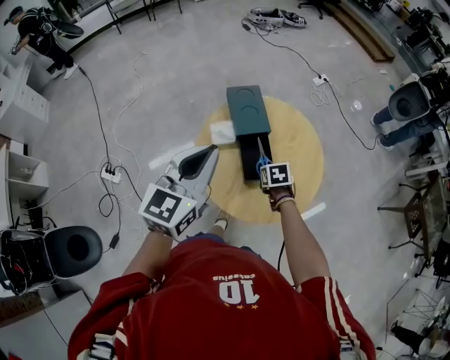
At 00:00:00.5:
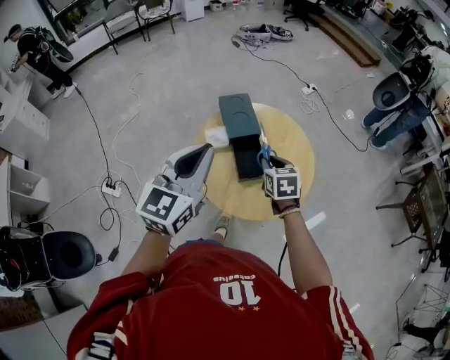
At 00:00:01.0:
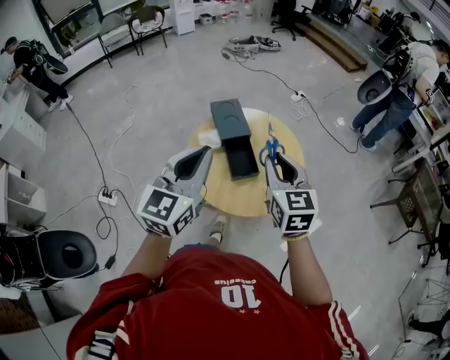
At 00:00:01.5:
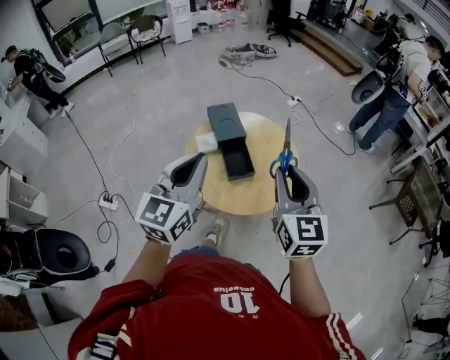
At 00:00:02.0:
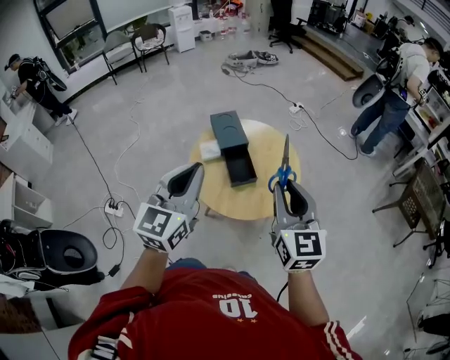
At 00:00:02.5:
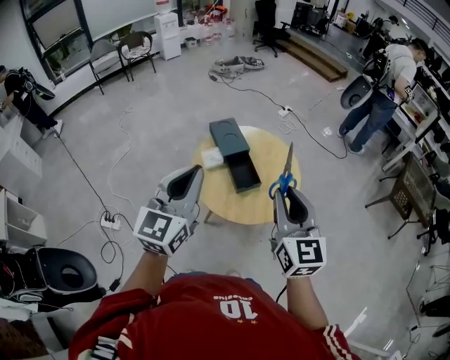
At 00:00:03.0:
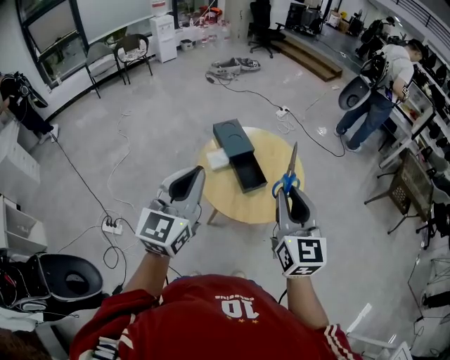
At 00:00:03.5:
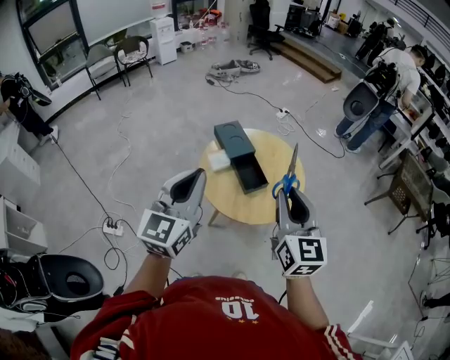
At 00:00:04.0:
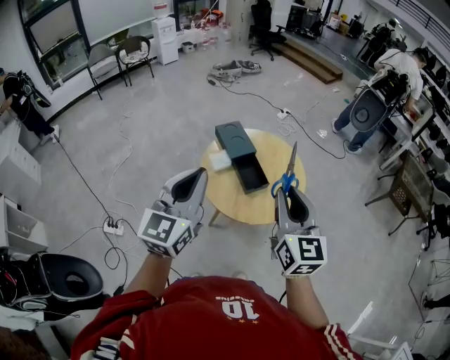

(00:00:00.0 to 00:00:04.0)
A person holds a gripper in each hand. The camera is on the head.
00:00:00.0 - 00:00:02.0: The left gripper moves backward and upward, some 15 cm. The right gripper heads upward and backward, covering about 40 cm, and tips its fingers upward by roughly 60 degrees.
00:00:02.0 - 00:00:04.0: The grippers both shift to the left by some 10 cm.

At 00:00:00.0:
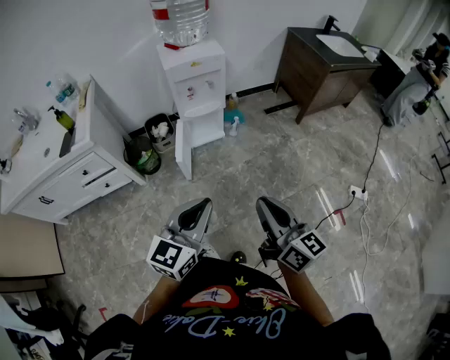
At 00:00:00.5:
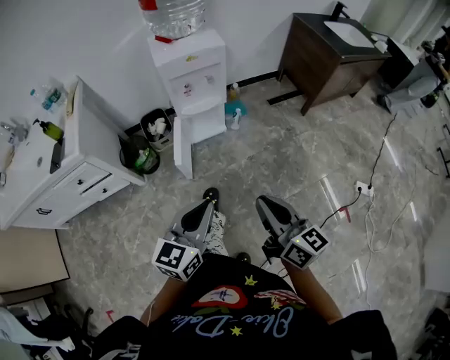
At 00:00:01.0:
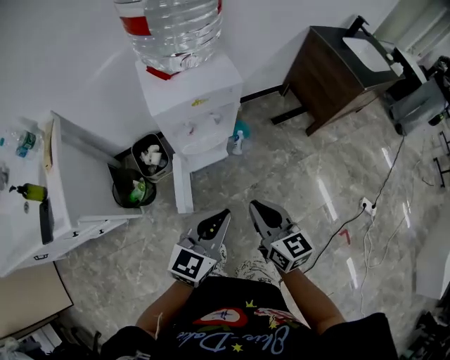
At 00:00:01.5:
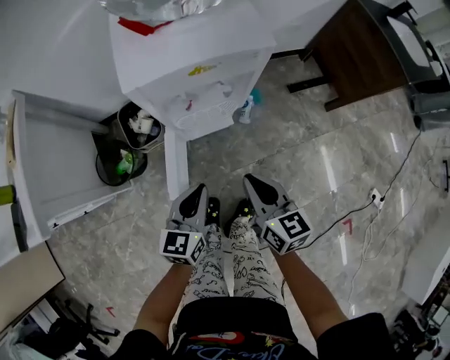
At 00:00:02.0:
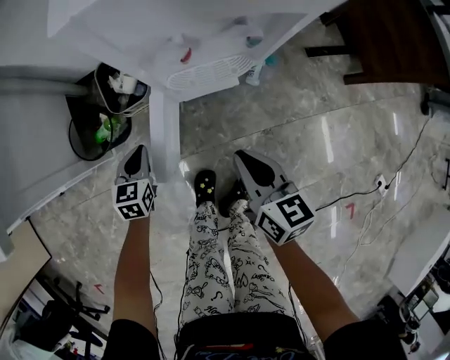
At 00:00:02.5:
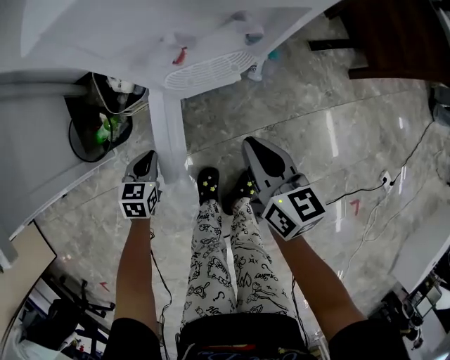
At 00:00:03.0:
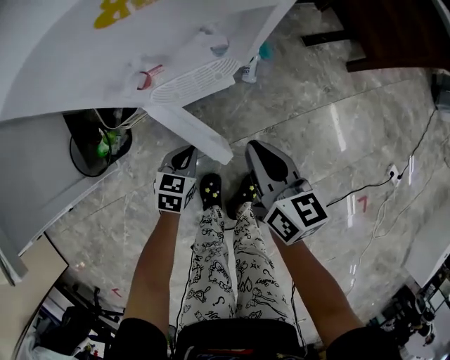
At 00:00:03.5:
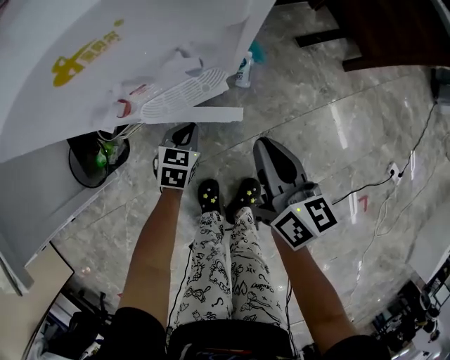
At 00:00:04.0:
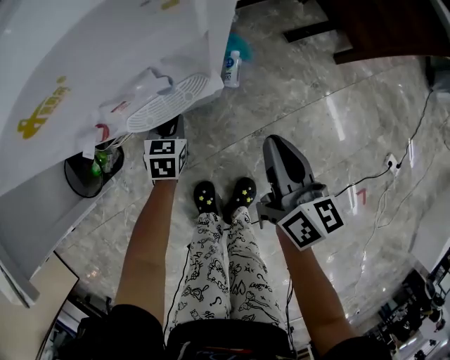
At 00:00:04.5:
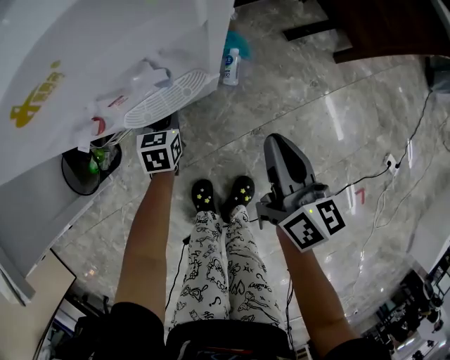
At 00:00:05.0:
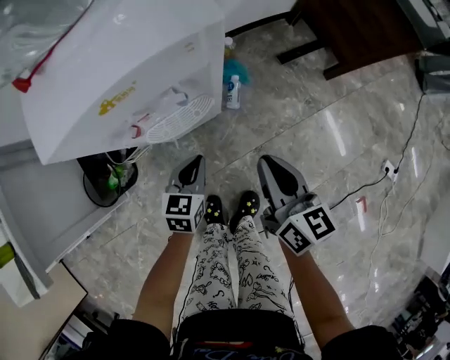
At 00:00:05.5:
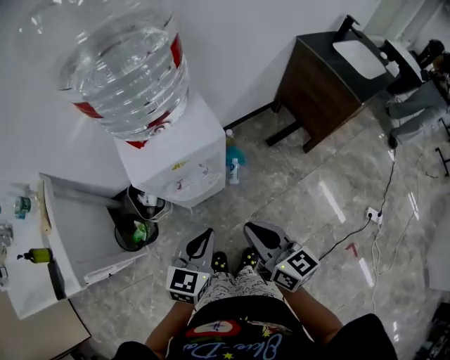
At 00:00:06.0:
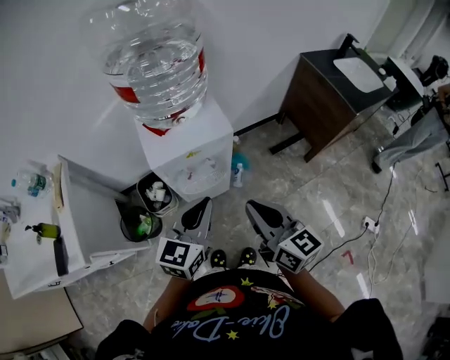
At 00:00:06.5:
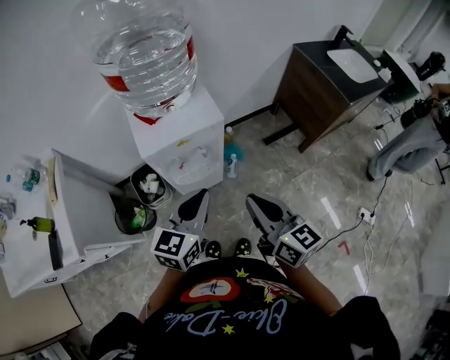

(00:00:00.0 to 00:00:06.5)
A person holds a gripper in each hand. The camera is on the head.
00:00:00.0 - 00:00:02.0: The two grippers travel together, forward, some 50 cm. The two grippers go approximately 50 cm downward. The left gripper tips its fingers downward by about 30 degrees. The right gripper turns by some 30 degrees.
00:00:02.0 - 00:00:04.5: The grippers both shift to the right and forward by some 20 cm. The right gripper swivels some 30 degrees.
00:00:04.5 - 00:00:06.5: The left gripper travels upward by roughly 60 cm, and points its fingers approximately 30 degrees further upward; the right gripper heads upward and backward, covering approximately 40 cm, and changes its angle by some 30 degrees.

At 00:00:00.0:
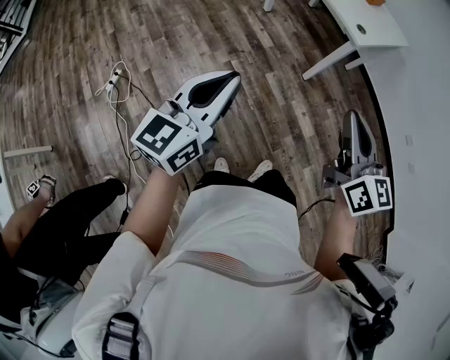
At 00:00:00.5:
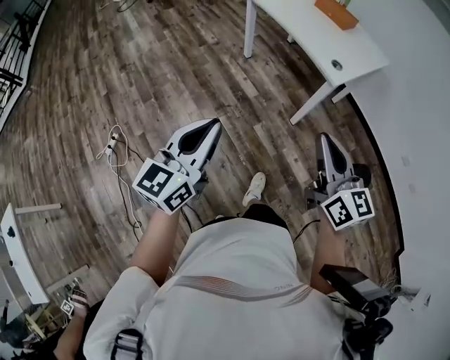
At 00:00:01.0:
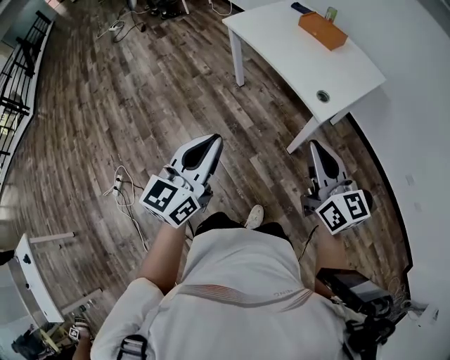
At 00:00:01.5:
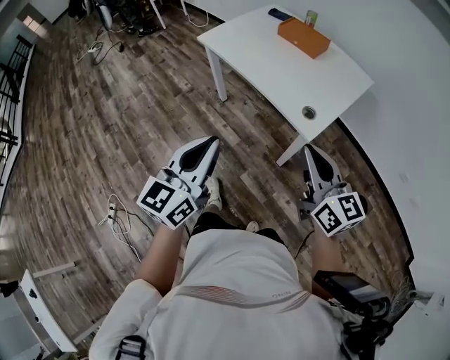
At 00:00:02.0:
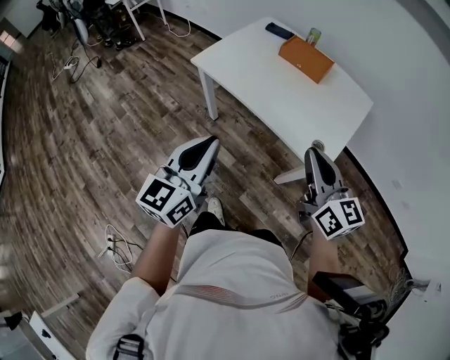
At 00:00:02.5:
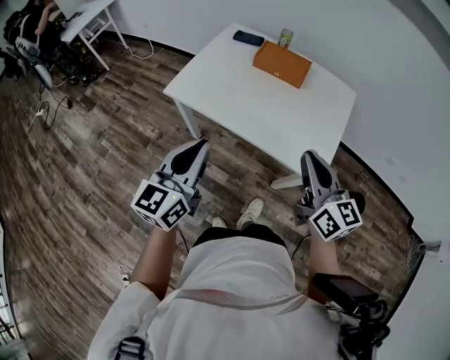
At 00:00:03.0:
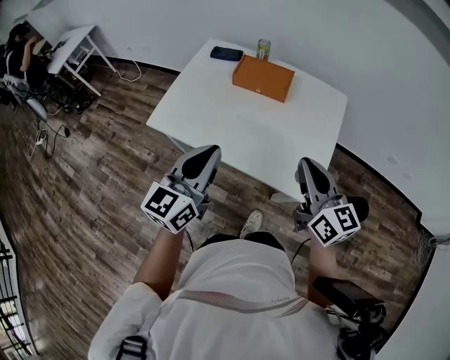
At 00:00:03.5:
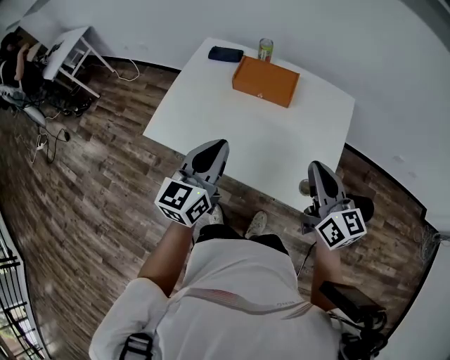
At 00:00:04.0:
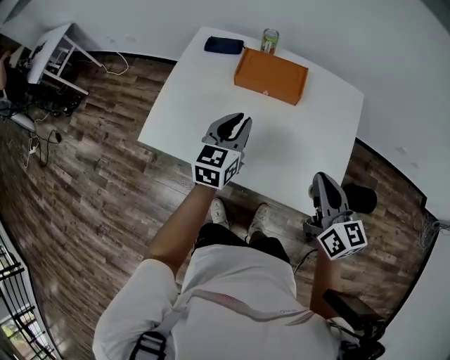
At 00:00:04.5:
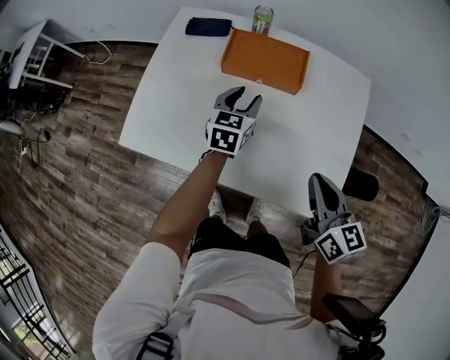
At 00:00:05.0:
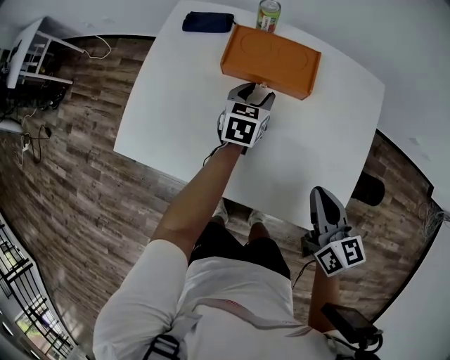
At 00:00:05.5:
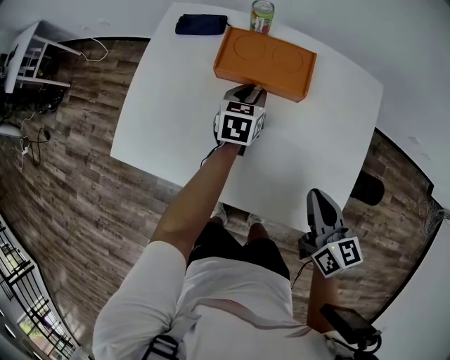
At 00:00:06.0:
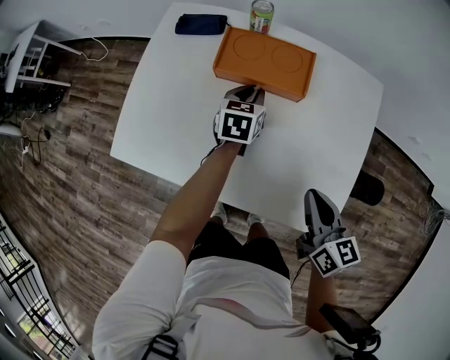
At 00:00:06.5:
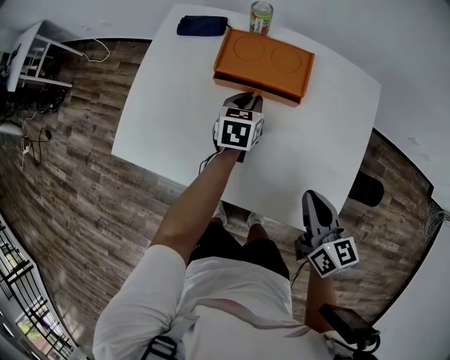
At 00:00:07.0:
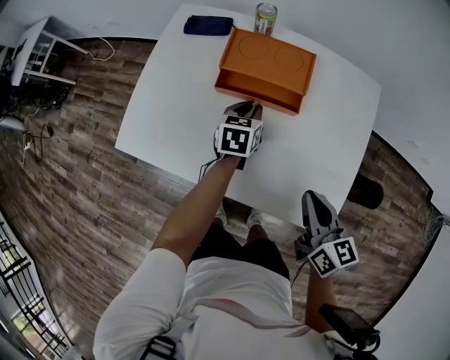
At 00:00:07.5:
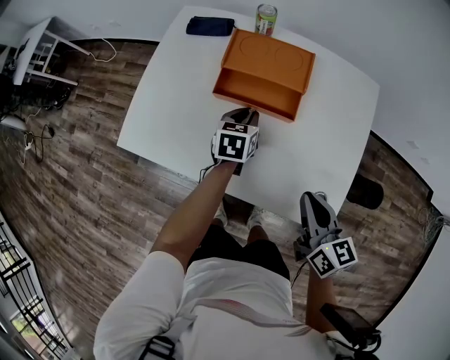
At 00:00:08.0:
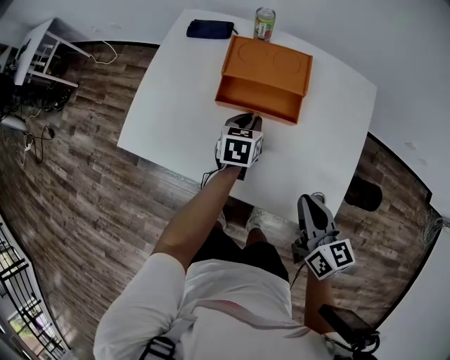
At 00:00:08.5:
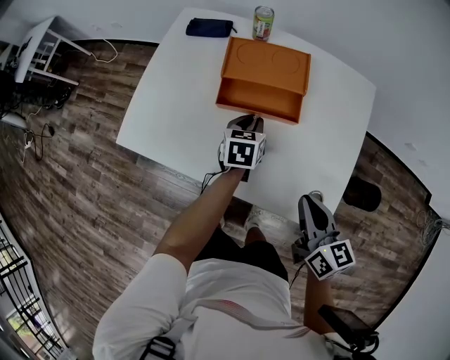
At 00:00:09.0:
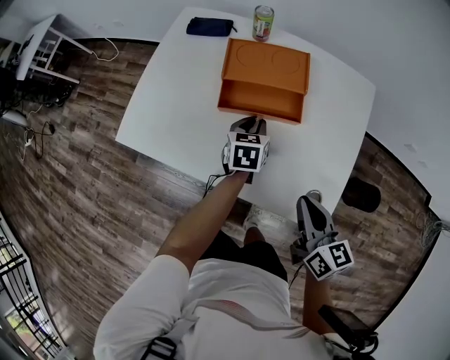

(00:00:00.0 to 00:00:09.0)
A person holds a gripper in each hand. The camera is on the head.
00:00:00.0 - 00:00:02.0: The two grippers travel together, forward, roughly 60 cm.
00:00:02.0 - 00:00:04.5: The right gripper travels forward and downward by roughly 30 cm, and changes its angle by some 30 degrees; the left gripper moves forward and downward, approximately 60 cm, turns by some 30 degrees, and opens.
00:00:04.5 - 00:00:07.0: The left gripper is displaced downward by roughly 5 cm, and closes up.
00:00:07.0 - 00:00:09.0: The left gripper heads backward, covering some 5 cm.

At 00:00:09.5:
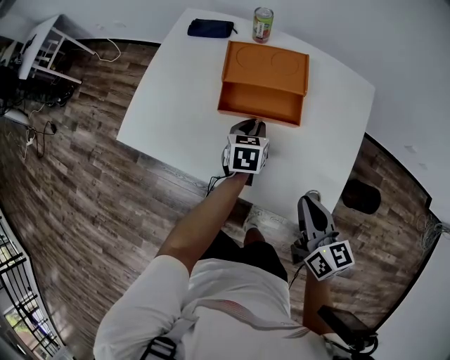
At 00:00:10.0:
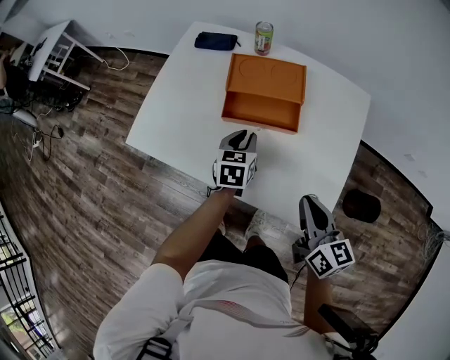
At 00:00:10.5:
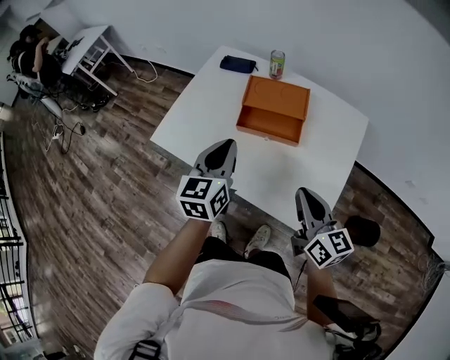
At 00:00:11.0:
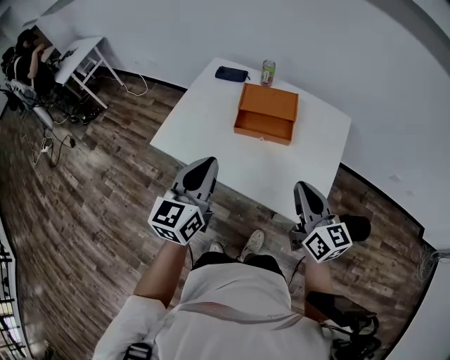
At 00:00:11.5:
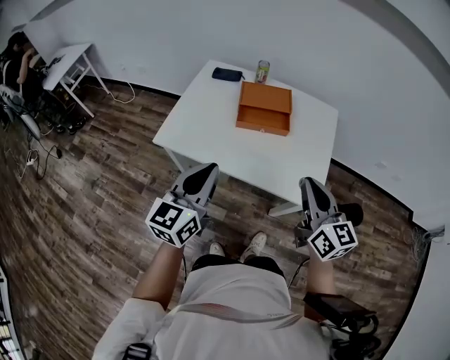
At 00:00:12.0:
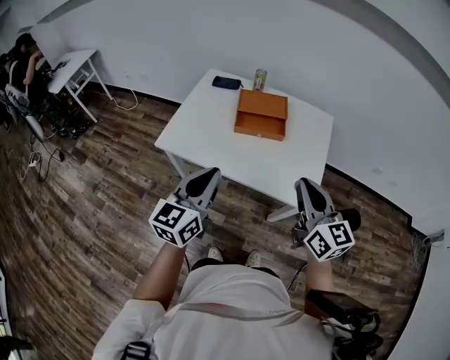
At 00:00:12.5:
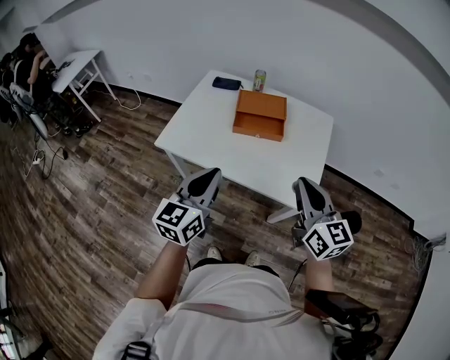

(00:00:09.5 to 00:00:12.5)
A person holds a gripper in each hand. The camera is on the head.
00:00:09.5 - 00:00:11.0: The left gripper moves upward, backward and to the left, about 40 cm, and tilts its fingers about 40 degrees upward. The right gripper goes some 15 cm upward.
00:00:11.0 - 00:00:12.5: The right gripper heads backward and upward, covering roughly 10 cm, while the left gripper is displaced backward by roughly 10 cm.

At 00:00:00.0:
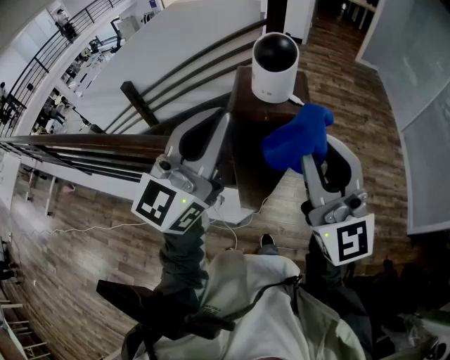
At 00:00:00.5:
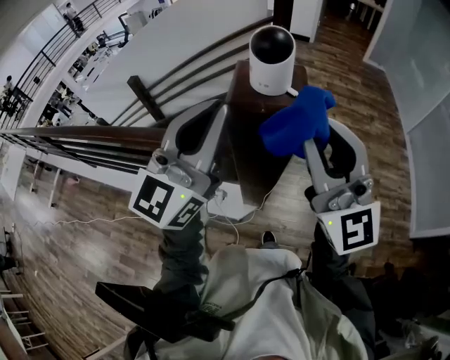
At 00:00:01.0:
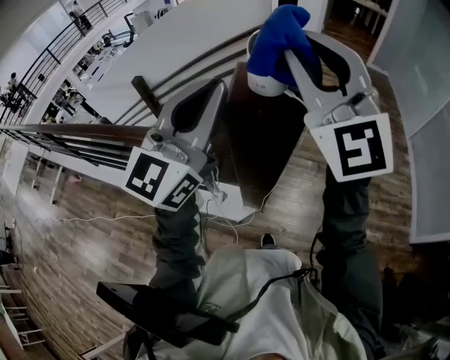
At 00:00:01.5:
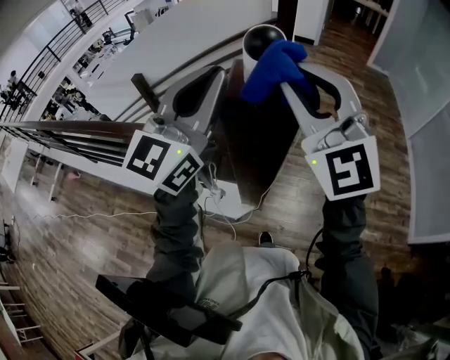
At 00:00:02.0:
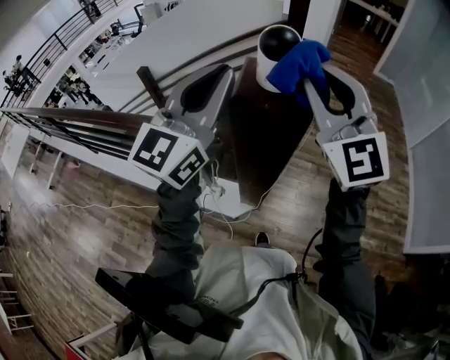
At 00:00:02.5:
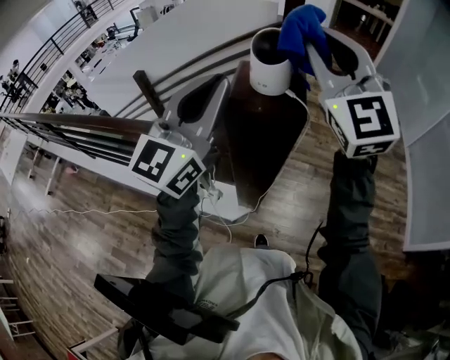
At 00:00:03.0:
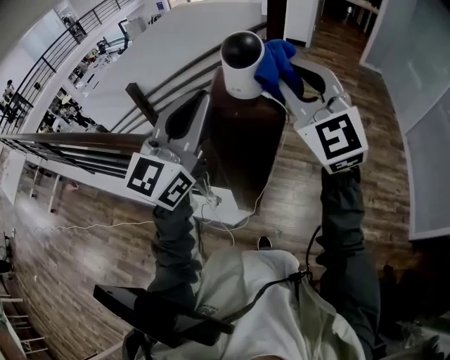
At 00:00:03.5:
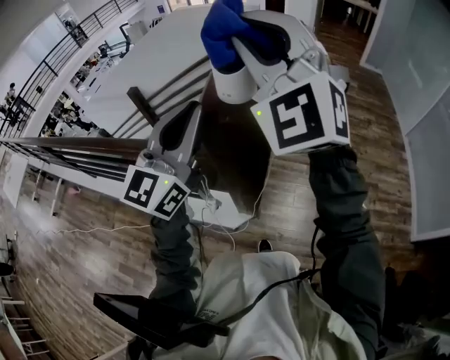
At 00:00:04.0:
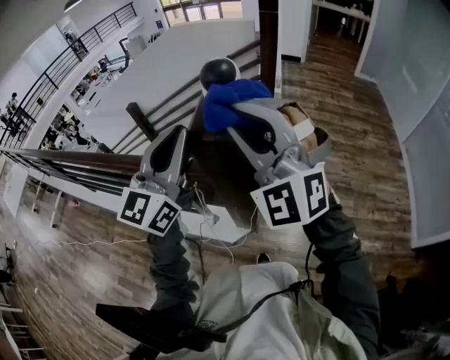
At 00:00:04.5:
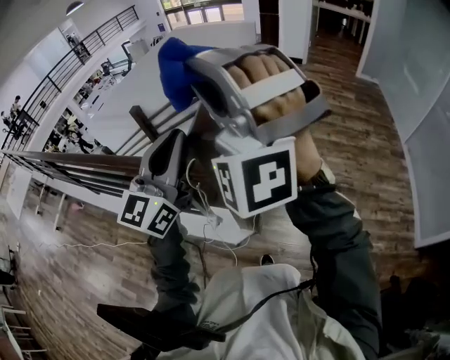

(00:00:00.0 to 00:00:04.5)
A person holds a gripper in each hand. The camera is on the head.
00:00:00.0 - 00:00:02.0: The right gripper shifts approximately 10 cm forward.
00:00:02.0 - 00:00:04.5: The right gripper moves up and down over about 10 cm, changing direction 4 times, and rolls counterclockwise, seen from behind, by about 50 degrees.
